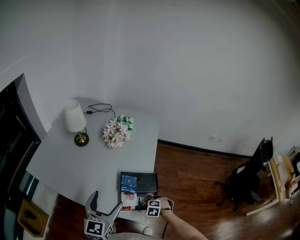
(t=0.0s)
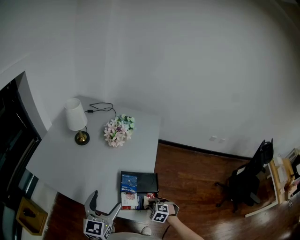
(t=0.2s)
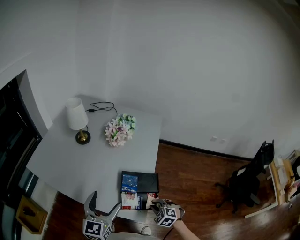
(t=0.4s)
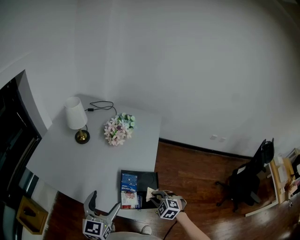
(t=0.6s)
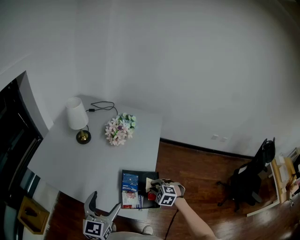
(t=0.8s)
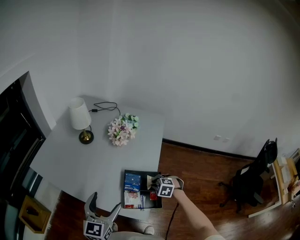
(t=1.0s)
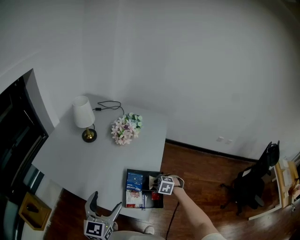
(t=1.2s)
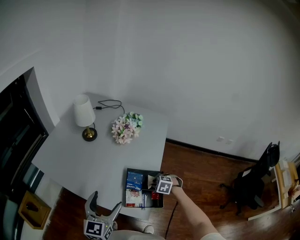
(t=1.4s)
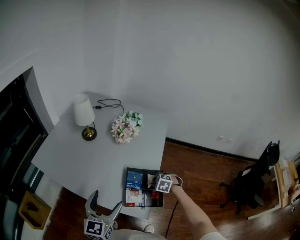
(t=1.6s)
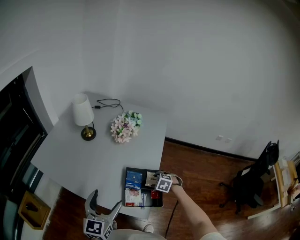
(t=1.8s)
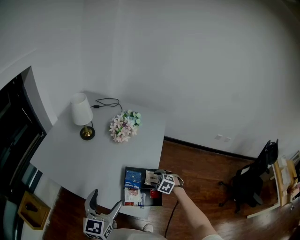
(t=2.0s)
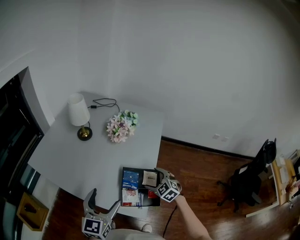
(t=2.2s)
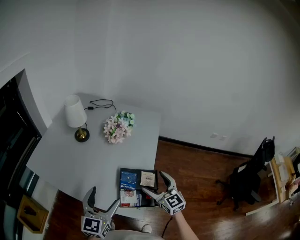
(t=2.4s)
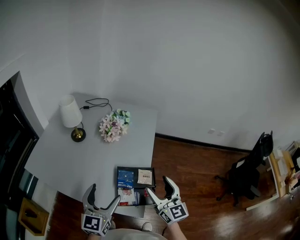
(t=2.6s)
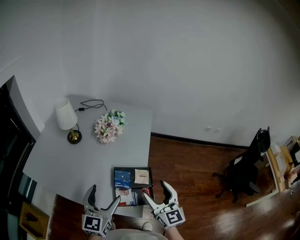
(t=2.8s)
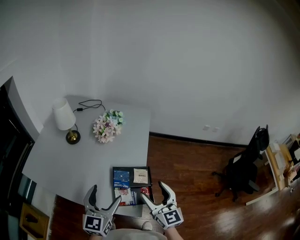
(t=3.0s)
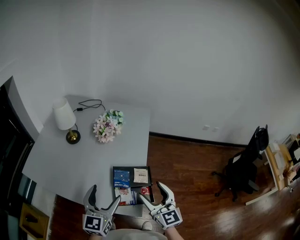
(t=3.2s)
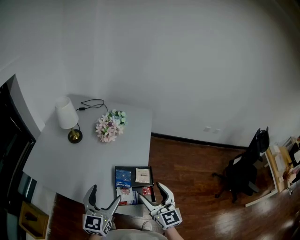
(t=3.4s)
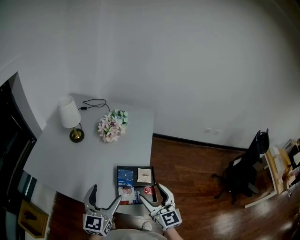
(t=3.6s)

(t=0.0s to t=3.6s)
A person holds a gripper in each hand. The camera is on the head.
t=0.0s - t=1.8s: The right gripper moves some 15 cm, and opens.
t=1.8s - t=3.6s: The right gripper heads upward and backward, covering some 30 cm, and angles its fingers upward, by about 70 degrees.

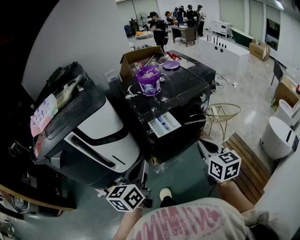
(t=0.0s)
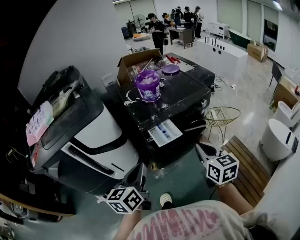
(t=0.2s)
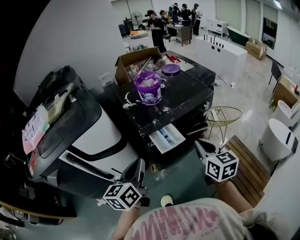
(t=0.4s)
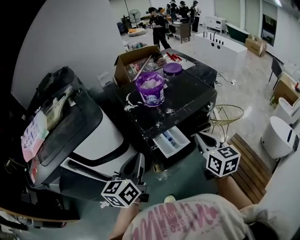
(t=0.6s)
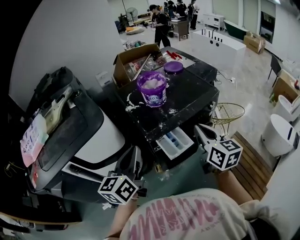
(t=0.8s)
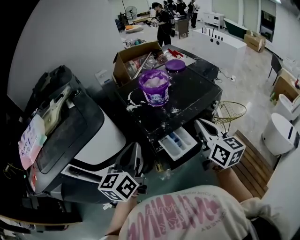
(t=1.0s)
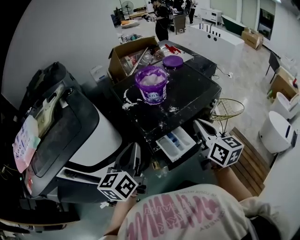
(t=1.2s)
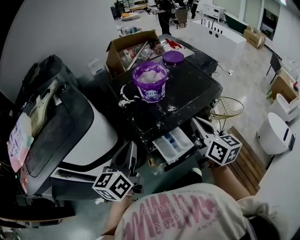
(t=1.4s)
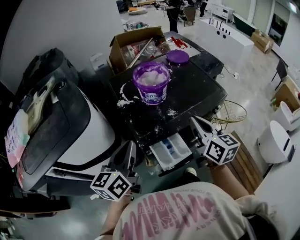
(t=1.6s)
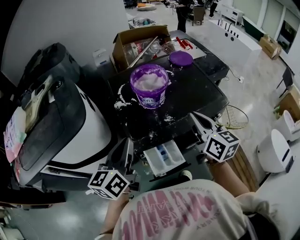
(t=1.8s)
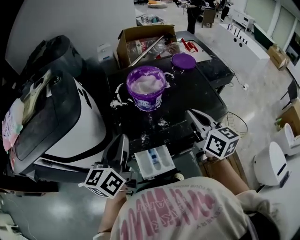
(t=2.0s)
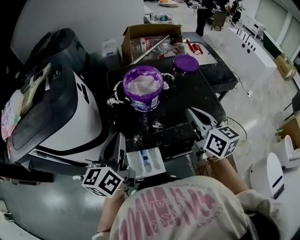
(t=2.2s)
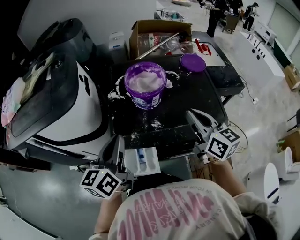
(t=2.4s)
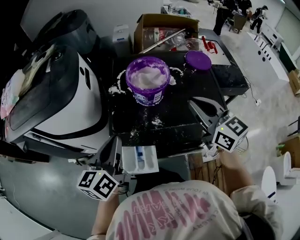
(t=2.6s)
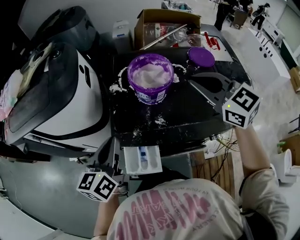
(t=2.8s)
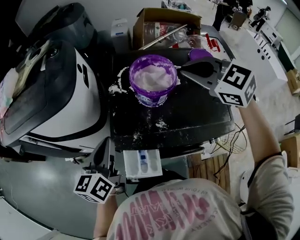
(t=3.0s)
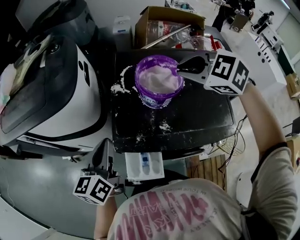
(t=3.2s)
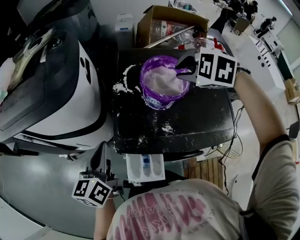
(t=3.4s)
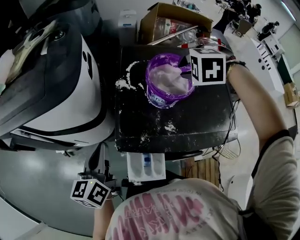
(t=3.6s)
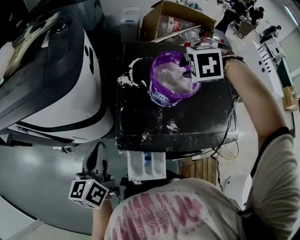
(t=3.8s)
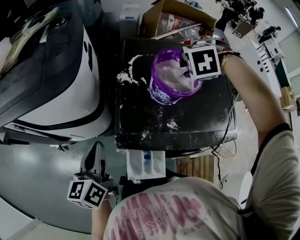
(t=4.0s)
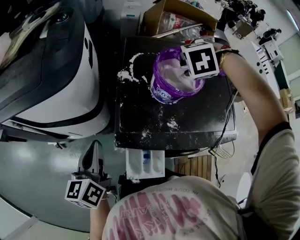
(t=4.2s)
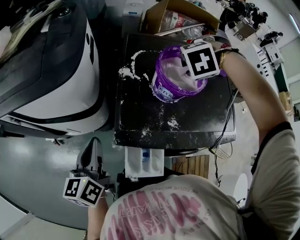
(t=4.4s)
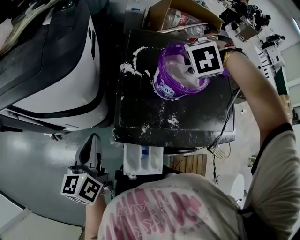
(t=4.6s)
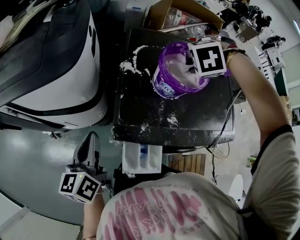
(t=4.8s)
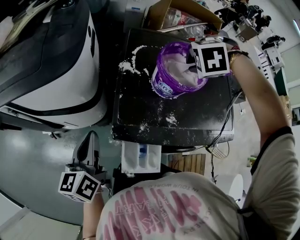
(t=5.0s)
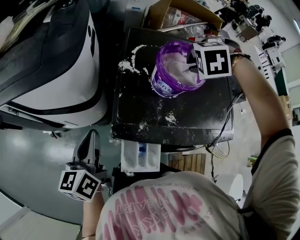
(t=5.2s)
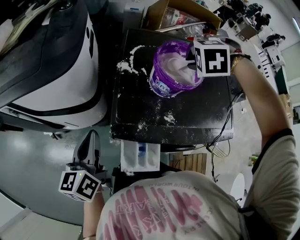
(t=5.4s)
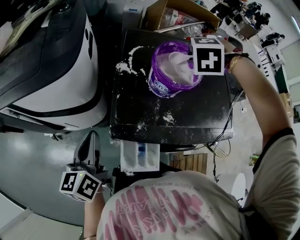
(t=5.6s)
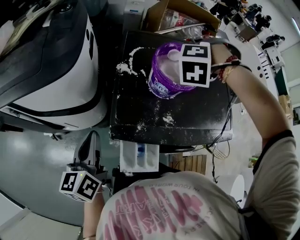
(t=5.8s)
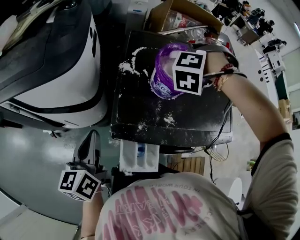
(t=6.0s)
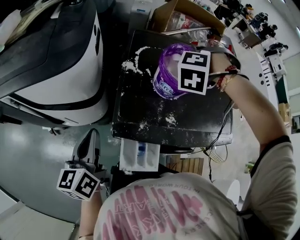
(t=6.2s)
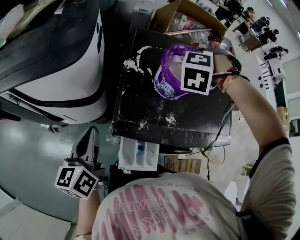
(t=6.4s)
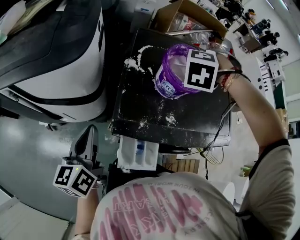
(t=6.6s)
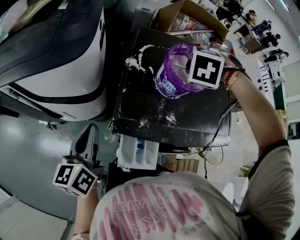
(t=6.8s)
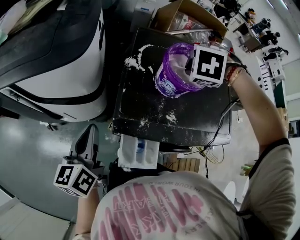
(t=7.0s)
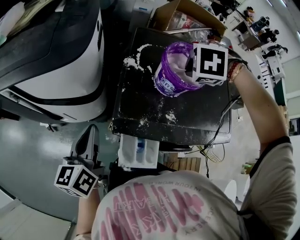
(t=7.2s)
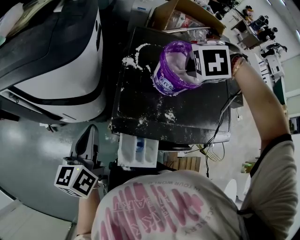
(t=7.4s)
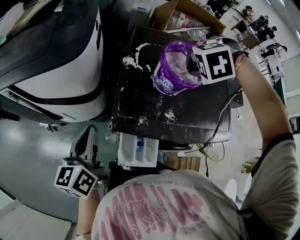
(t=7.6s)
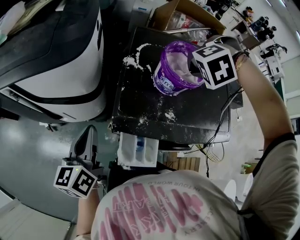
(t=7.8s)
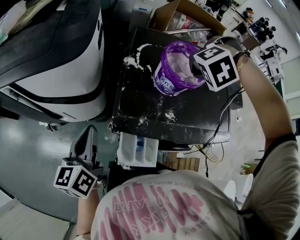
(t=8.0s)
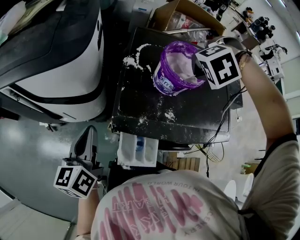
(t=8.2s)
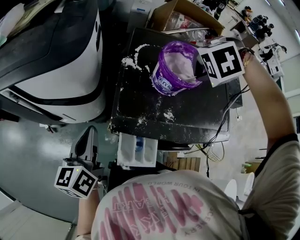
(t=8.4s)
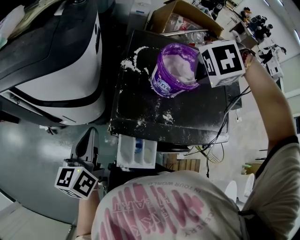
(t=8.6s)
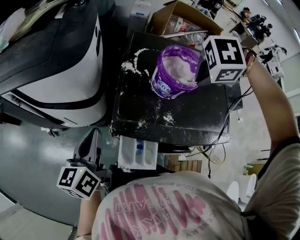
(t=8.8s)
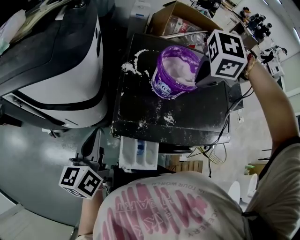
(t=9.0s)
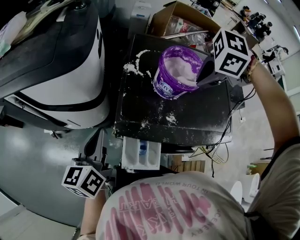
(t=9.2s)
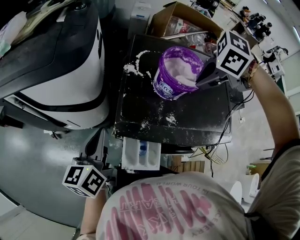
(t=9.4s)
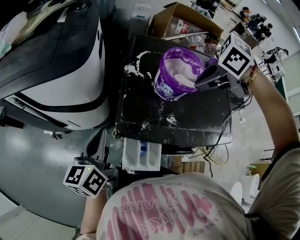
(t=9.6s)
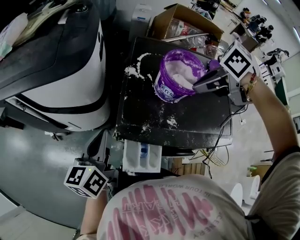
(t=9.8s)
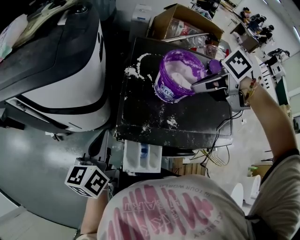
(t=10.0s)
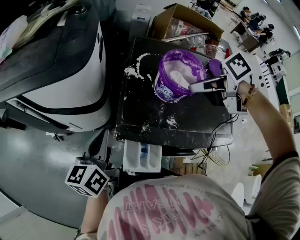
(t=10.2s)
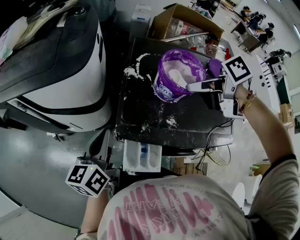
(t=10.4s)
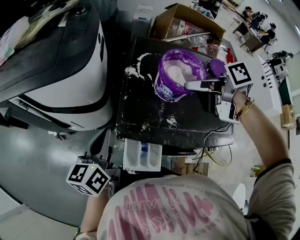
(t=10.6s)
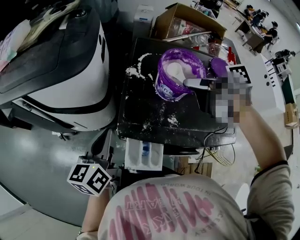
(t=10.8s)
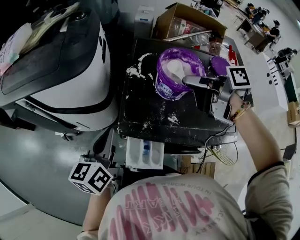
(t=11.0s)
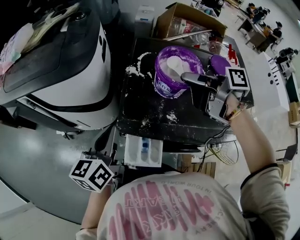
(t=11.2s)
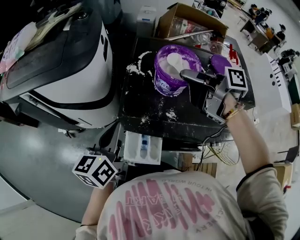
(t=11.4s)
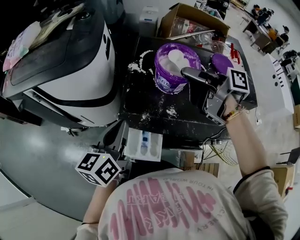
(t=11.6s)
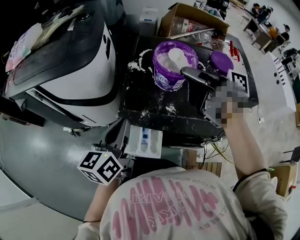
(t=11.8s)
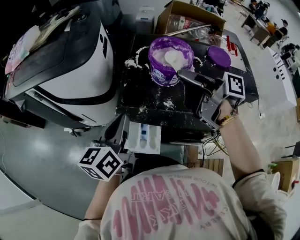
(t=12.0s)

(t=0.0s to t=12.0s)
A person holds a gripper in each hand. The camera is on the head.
t=0.0s - t=1.6s: The left gripper moves roughly 30 cm.
t=1.6s - t=3.0s: The left gripper turns by approximately 30 degrees.
t=3.0s - t=4.4s: The left gripper shifts by some 10 cm.
t=10.4s - t=12.0s: The left gripper moves about 10 cm.

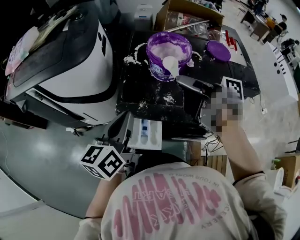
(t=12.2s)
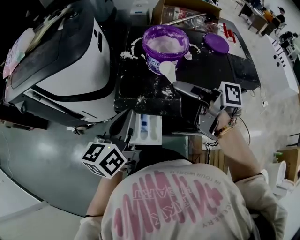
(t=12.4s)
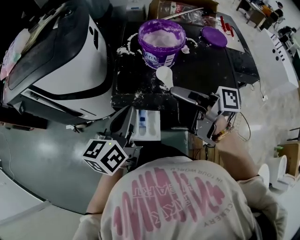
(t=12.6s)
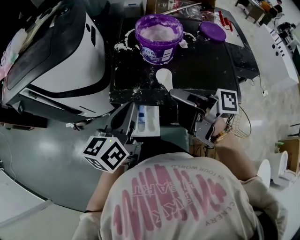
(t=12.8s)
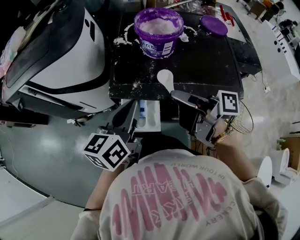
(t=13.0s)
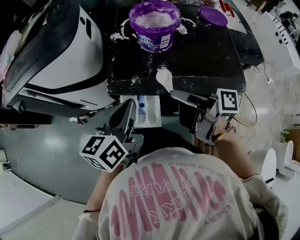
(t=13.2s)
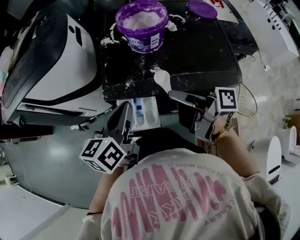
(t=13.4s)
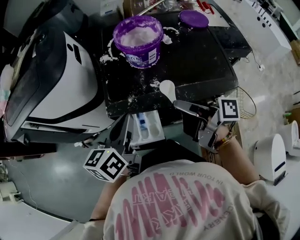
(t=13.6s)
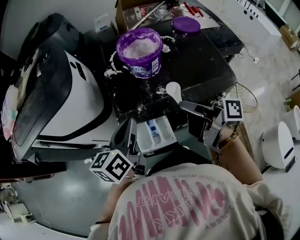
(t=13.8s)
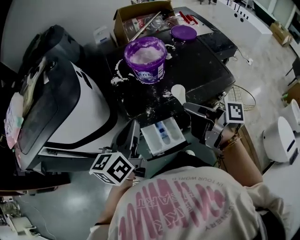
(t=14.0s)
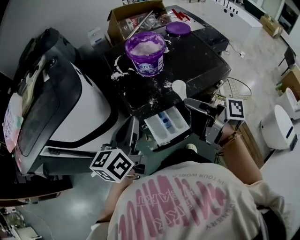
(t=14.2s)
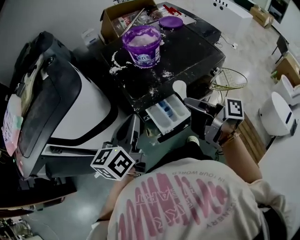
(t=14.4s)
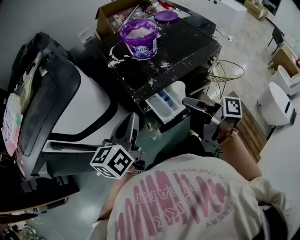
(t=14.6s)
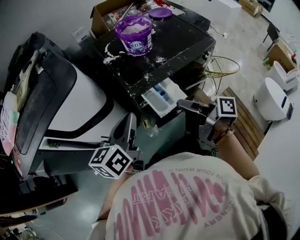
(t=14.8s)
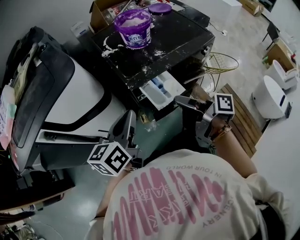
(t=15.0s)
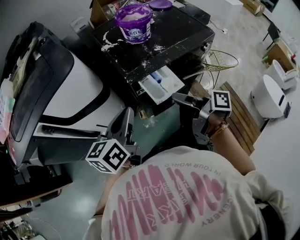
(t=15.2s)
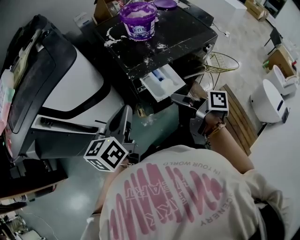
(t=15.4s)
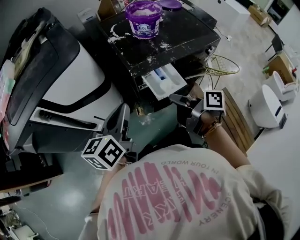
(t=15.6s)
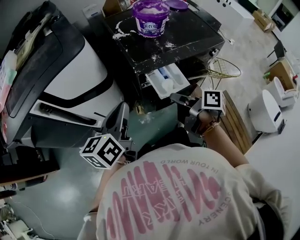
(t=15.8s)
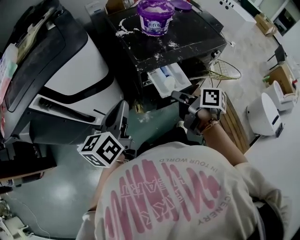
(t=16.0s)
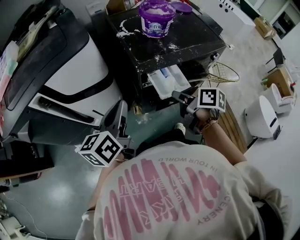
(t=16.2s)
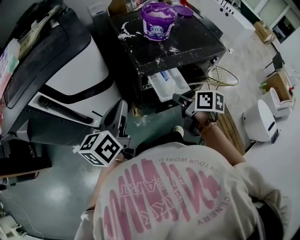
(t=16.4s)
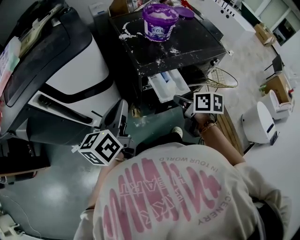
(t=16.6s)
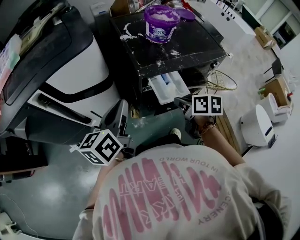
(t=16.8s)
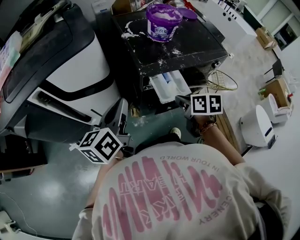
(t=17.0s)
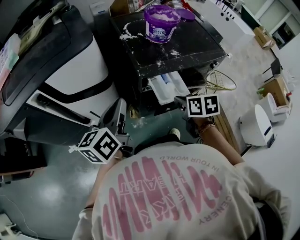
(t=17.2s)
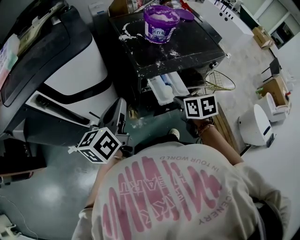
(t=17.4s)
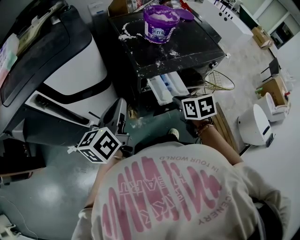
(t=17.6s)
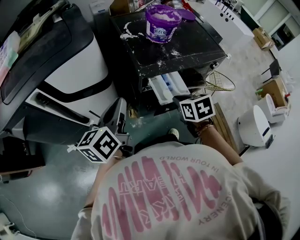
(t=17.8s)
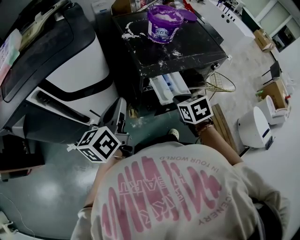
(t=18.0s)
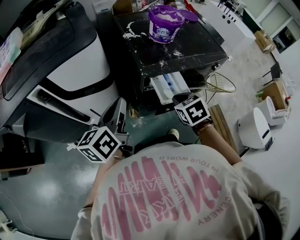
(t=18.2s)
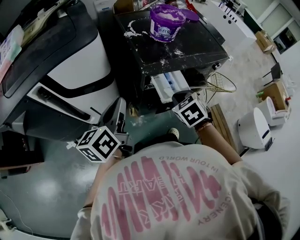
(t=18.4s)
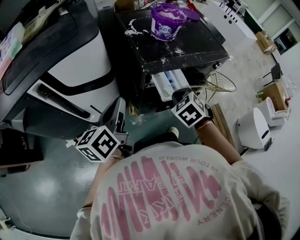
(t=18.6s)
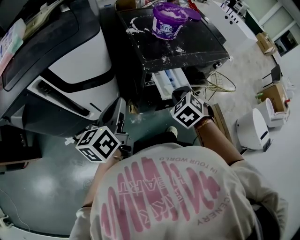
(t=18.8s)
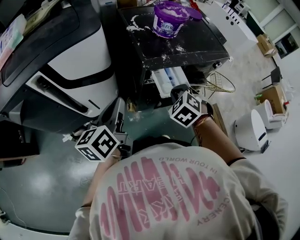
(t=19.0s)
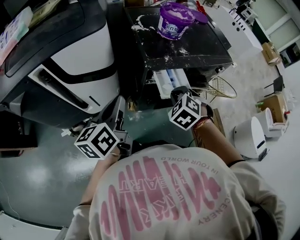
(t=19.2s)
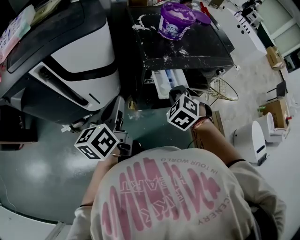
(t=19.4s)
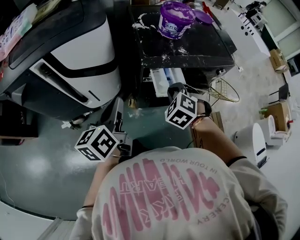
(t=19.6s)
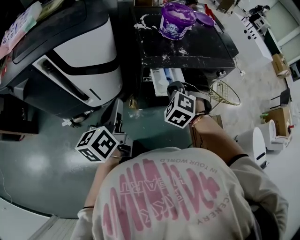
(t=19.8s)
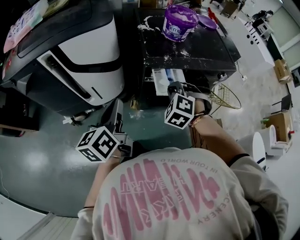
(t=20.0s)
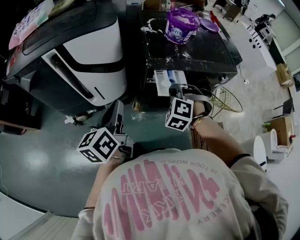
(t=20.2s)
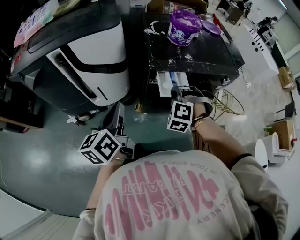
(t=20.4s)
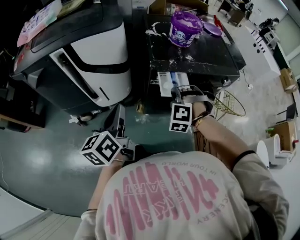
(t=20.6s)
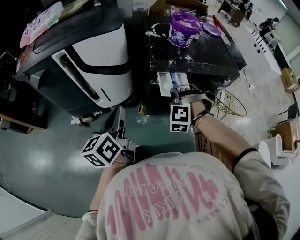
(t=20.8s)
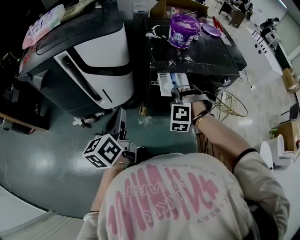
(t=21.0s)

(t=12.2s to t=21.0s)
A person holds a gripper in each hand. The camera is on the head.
t=13.6s - t=15.2s: The left gripper moves approximately 20 cm, and swivels some 20 degrees.
t=15.2s - t=16.6s: The left gripper ends up about 5 cm from where it was.
t=18.0s - t=19.6s: The left gripper moves about 5 cm.
t=19.6s - t=21.0s: The left gripper ends up some 10 cm from where it was.
